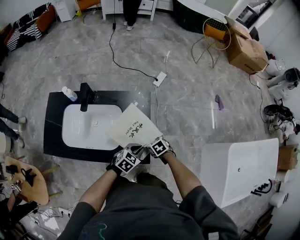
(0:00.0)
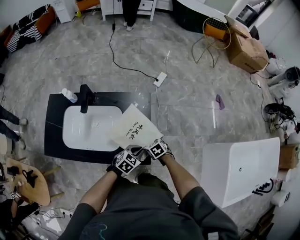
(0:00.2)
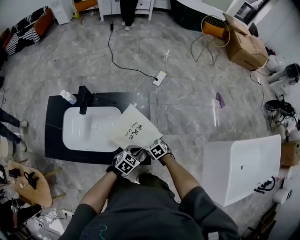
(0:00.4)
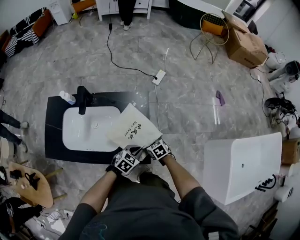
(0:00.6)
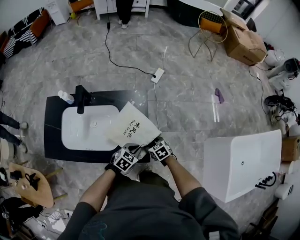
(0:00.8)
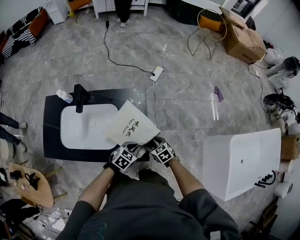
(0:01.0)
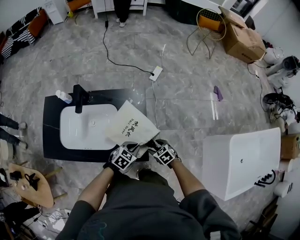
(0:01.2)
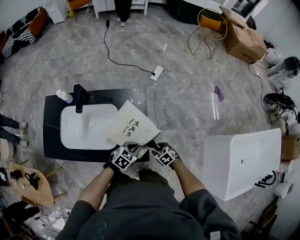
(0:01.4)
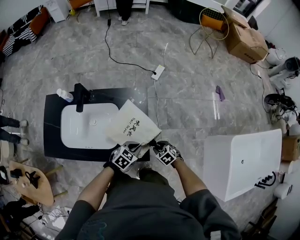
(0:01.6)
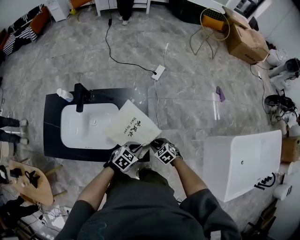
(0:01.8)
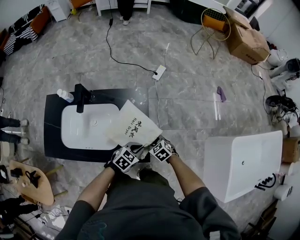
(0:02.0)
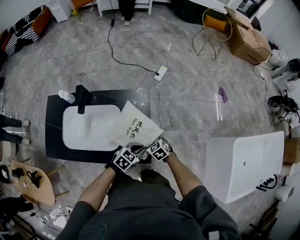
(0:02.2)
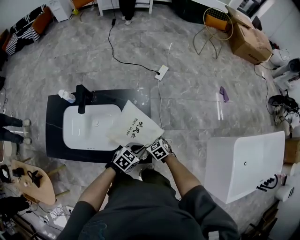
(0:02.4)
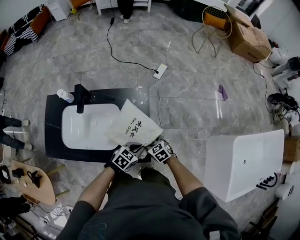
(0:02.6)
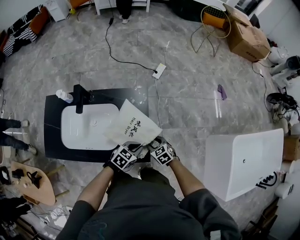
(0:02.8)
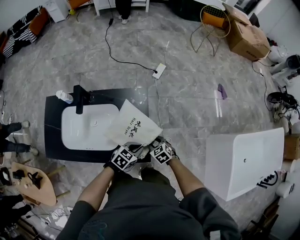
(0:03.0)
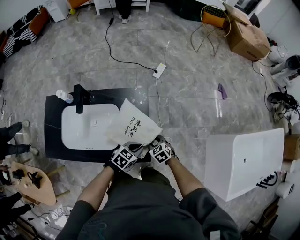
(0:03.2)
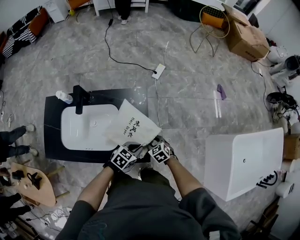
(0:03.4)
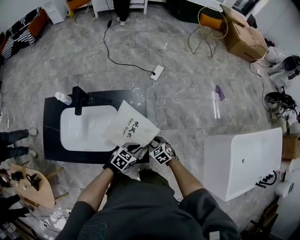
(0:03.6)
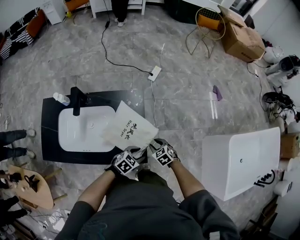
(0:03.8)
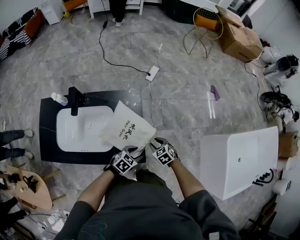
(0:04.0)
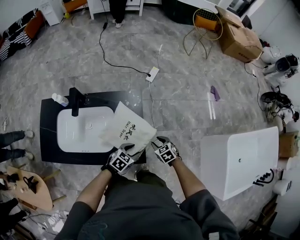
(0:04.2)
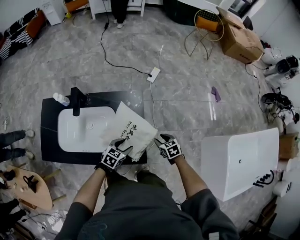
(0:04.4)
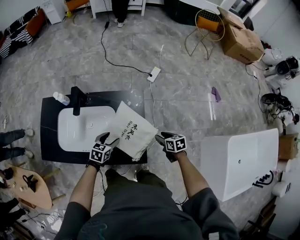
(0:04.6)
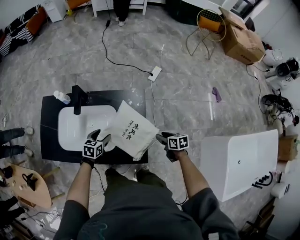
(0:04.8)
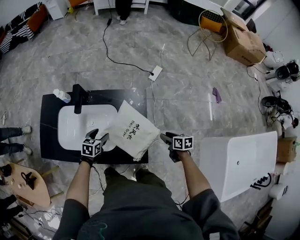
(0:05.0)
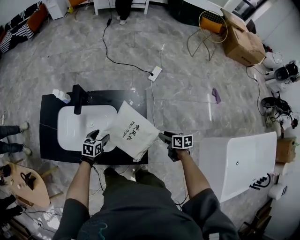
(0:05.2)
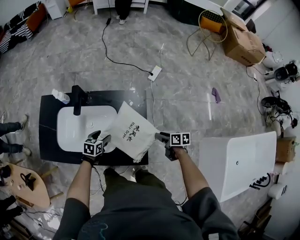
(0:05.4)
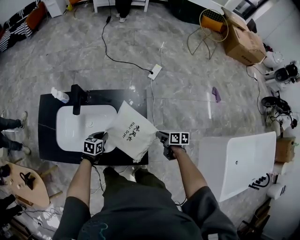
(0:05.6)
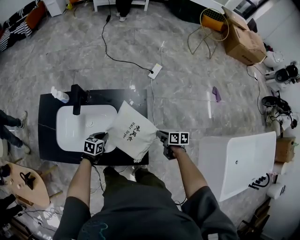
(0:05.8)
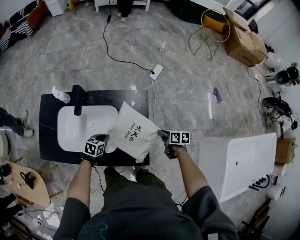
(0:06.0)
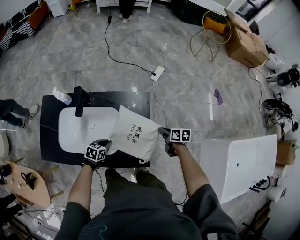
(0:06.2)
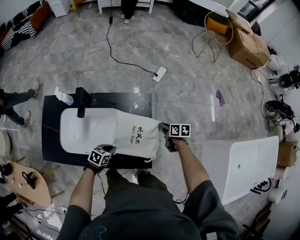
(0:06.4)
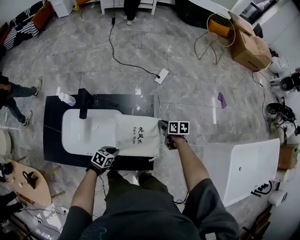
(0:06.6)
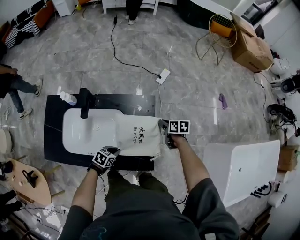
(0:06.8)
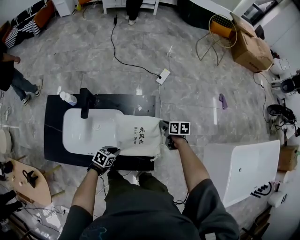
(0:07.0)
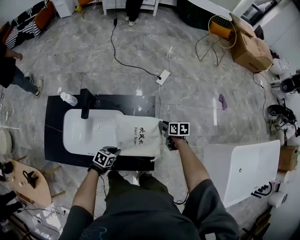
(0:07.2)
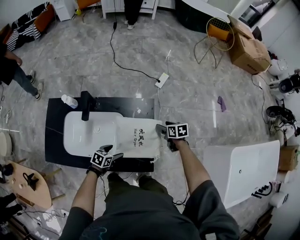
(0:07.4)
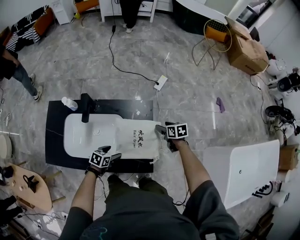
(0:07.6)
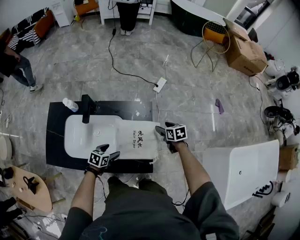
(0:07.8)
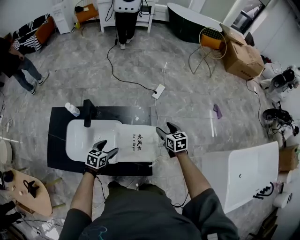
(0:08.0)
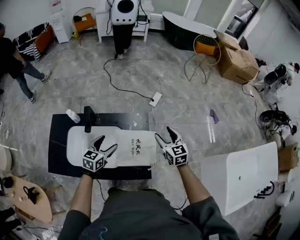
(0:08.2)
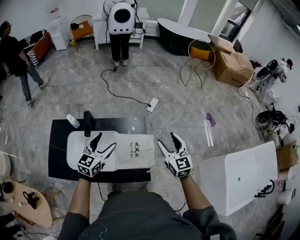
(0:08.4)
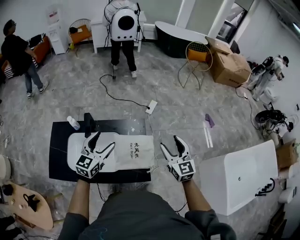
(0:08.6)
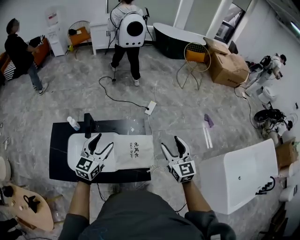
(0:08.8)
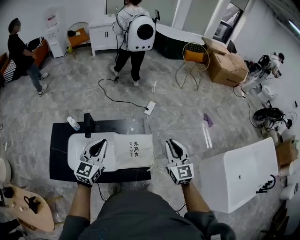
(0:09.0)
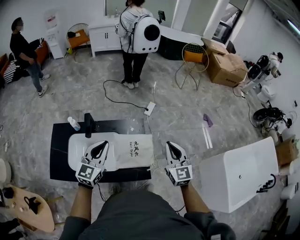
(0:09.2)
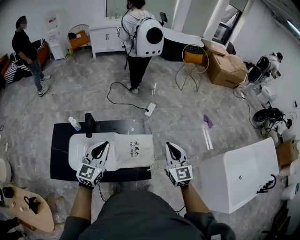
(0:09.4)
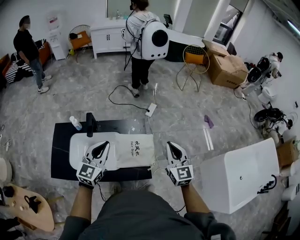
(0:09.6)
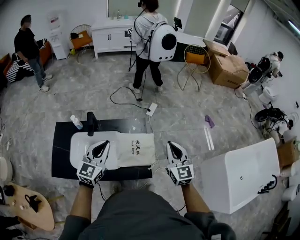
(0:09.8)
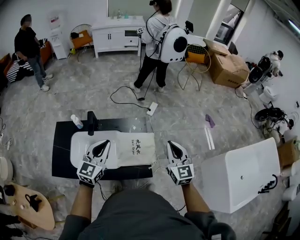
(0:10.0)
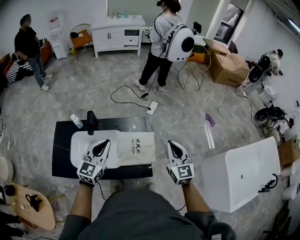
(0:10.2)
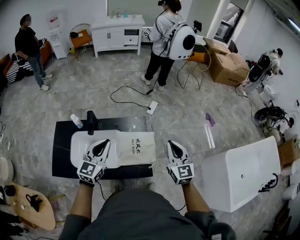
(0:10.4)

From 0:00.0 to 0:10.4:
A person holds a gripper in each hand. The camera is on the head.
From 0:00.0 to 0:01.4: The right gripper heads backward and to the right, covering some 10 cm.
From 0:01.4 to 0:03.0: The right gripper is displaced forward by some 5 cm.
From 0:03.0 to 0:04.4: The right gripper is displaced to the right by some 5 cm. The left gripper goes some 5 cm to the left, and opens.
From 0:04.4 to 0:06.0: The left gripper moves to the left and forward, about 15 cm, and closes up, while the right gripper goes some 5 cm forward, rotates some 40 degrees, and closes.
From 0:06.0 to 0:07.4: The right gripper heads forward, covering about 10 cm, and opens up. Meanwhile the left gripper moves backward, approximately 5 cm, and opens its fingers.
From 0:07.4 to 0:09.0: Both grippers travel together upward, about 35 cm. The left gripper tips its fingers upward by some 40 degrees, and closes. Meanwhile the right gripper angles its fingers upward, by roughly 40 degrees, and closes.
From 0:09.0 to 0:10.4: The grippers move only a little.

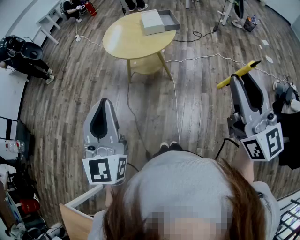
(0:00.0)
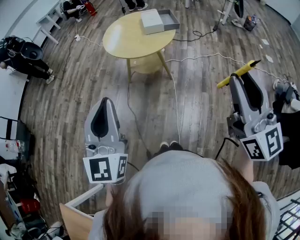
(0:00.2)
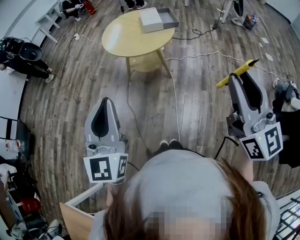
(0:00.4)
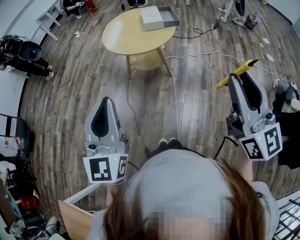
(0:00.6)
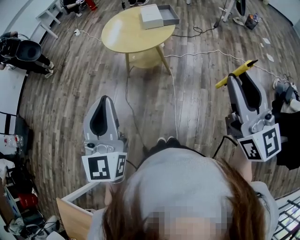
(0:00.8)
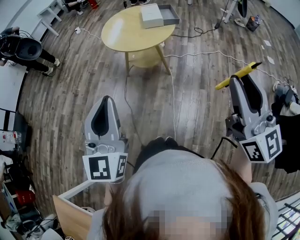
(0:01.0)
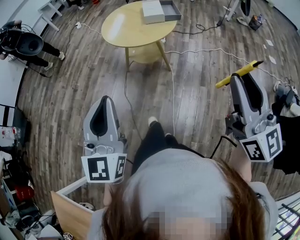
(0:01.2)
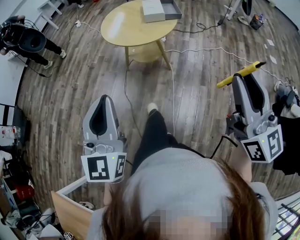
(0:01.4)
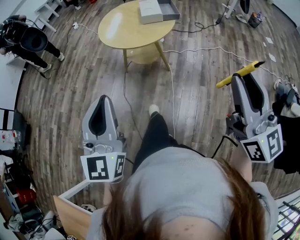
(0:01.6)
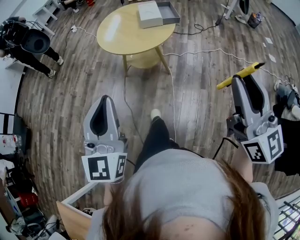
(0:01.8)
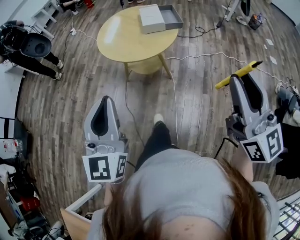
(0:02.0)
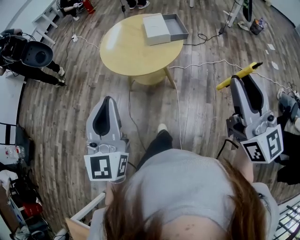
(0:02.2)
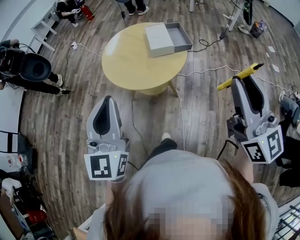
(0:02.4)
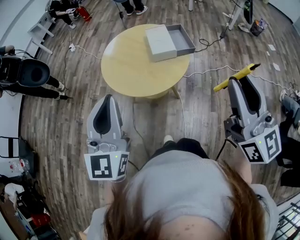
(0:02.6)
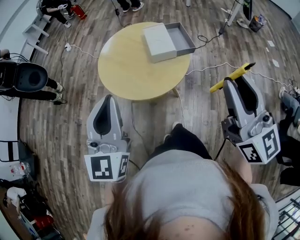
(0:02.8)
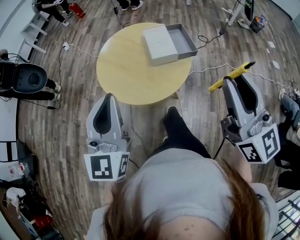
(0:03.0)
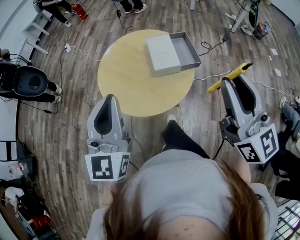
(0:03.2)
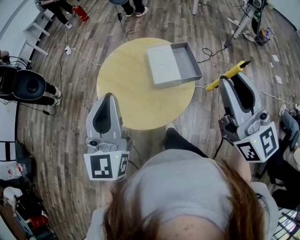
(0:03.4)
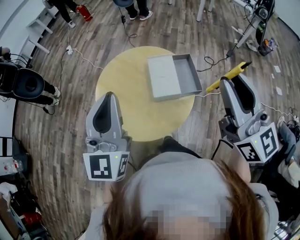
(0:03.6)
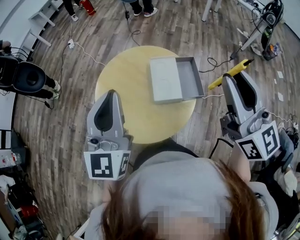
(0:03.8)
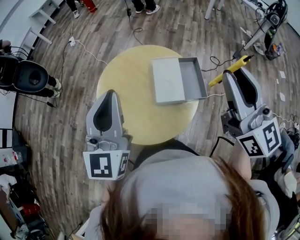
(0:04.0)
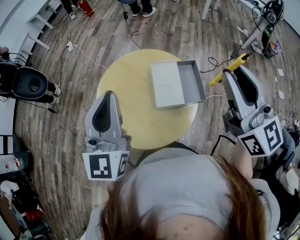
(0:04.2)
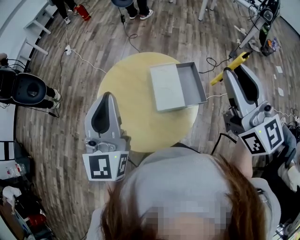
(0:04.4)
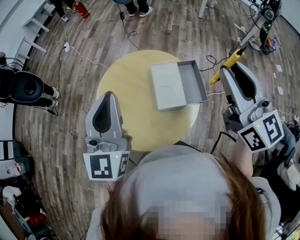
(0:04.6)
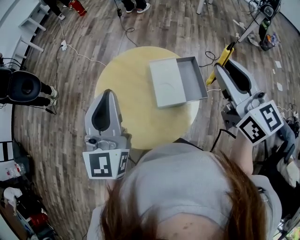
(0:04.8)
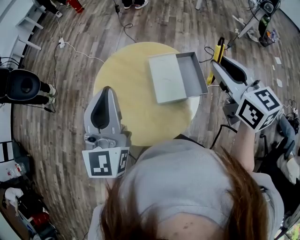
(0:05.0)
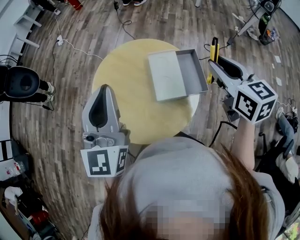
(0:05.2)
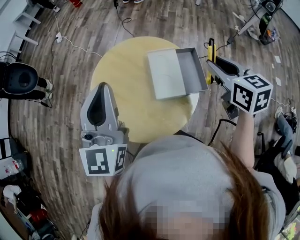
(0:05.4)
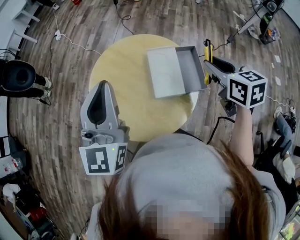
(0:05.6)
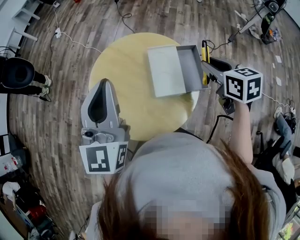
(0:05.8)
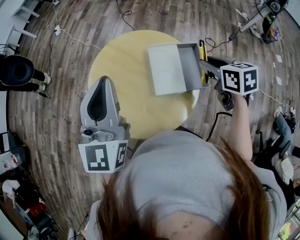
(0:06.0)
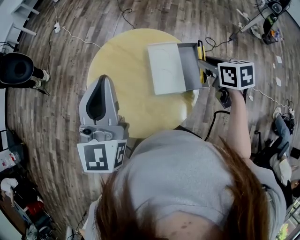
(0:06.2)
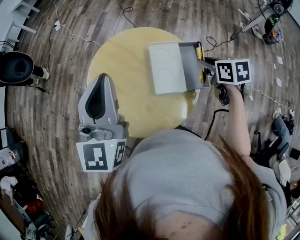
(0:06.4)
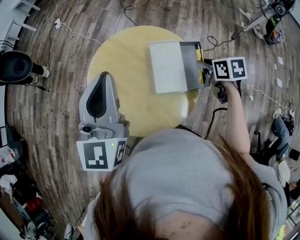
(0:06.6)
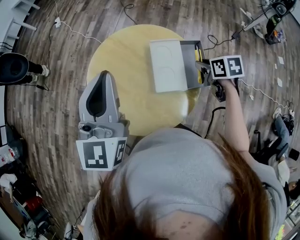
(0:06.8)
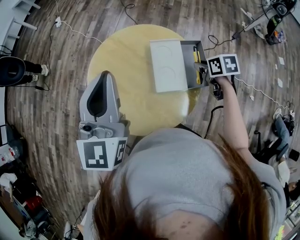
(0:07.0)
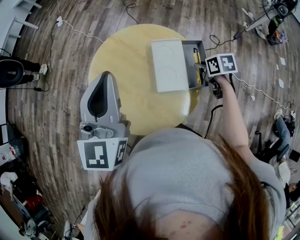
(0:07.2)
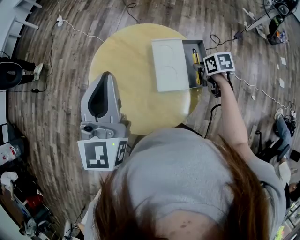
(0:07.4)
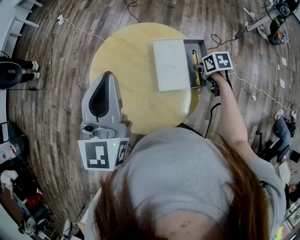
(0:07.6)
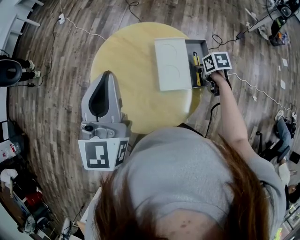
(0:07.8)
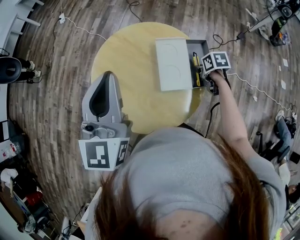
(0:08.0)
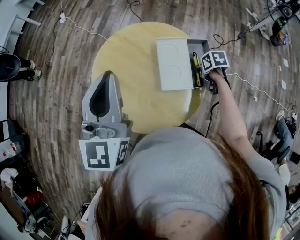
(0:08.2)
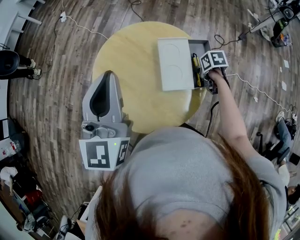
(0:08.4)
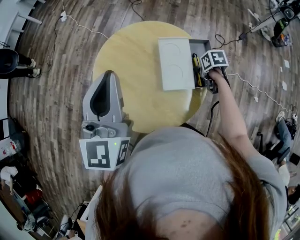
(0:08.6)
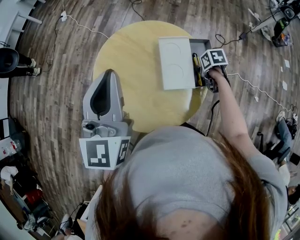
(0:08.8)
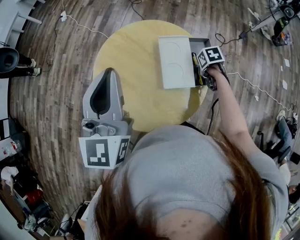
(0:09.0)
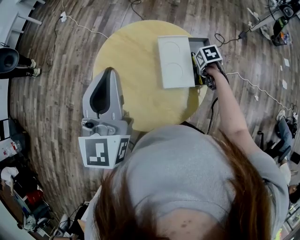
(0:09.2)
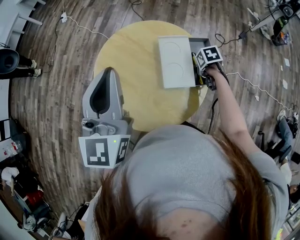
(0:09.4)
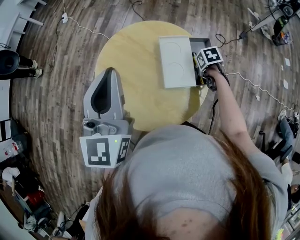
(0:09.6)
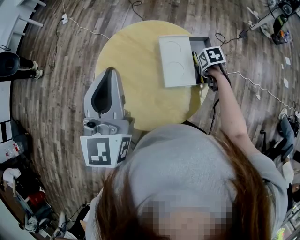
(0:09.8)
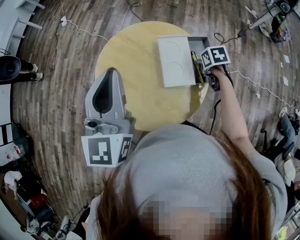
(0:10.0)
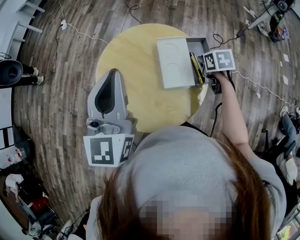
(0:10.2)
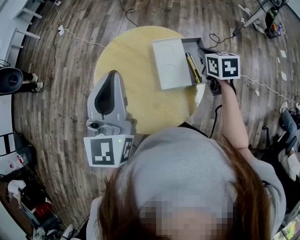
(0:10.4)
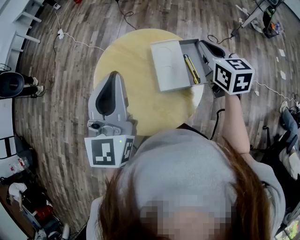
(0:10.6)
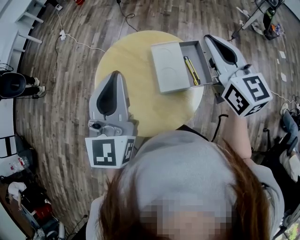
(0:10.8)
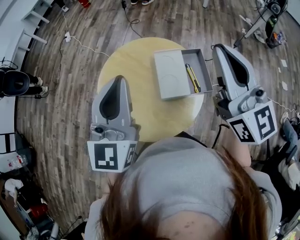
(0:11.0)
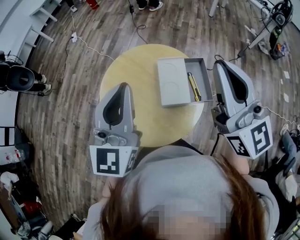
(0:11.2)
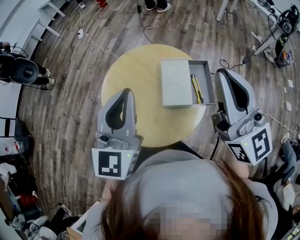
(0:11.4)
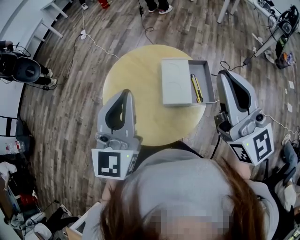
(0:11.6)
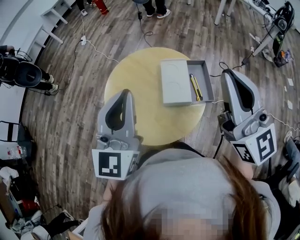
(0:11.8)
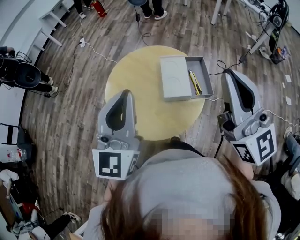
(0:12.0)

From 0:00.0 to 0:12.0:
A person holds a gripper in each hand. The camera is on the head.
From 0:00.0 to 0:01.6: There are only small adjustments of the grippers.
From 0:01.6 to 0:03.0: Both grippers travel together forward, roughly 35 cm.
From 0:03.0 to 0:04.4: The grippers both shift forward by roughly 25 cm.
From 0:04.4 to 0:06.0: The right gripper is displaced downward by roughly 25 cm, and tilts its fingers roughly 50 degrees downward.
From 0:06.0 to 0:07.6: The right gripper goes some 20 cm downward, and rotates roughly 20 degrees.
From 0:07.6 to 0:09.0: There are only small adjustments of the grippers.
From 0:09.0 to 0:10.4: The right gripper travels upward by approximately 20 cm, turns by roughly 40 degrees, and closes.
From 0:10.4 to 0:12.0: The left gripper shifts about 10 cm backward. Meanwhile the right gripper heads upward and backward, covering some 35 cm, and tips its fingers upward by approximately 60 degrees.

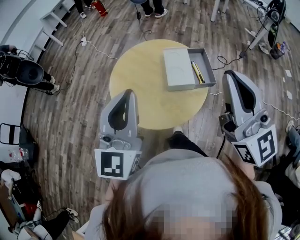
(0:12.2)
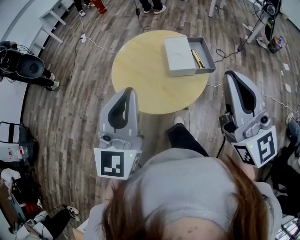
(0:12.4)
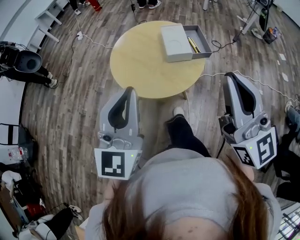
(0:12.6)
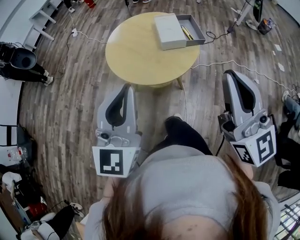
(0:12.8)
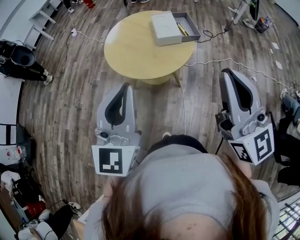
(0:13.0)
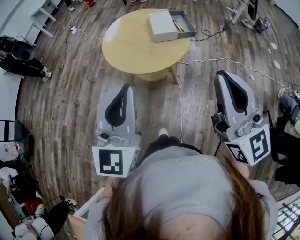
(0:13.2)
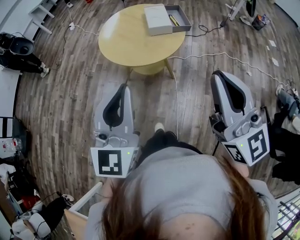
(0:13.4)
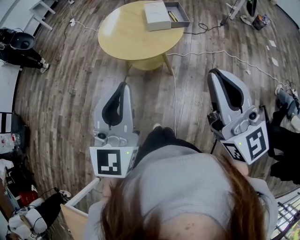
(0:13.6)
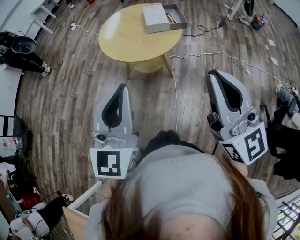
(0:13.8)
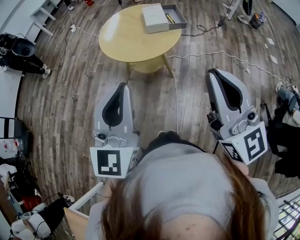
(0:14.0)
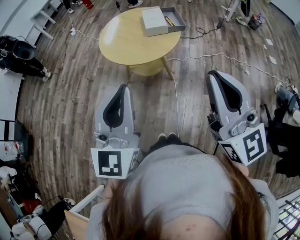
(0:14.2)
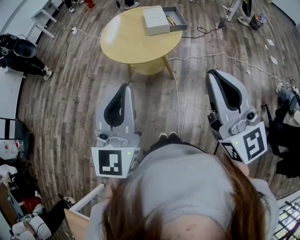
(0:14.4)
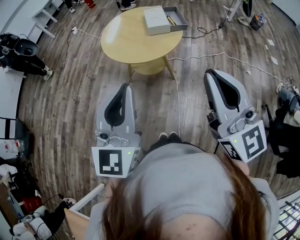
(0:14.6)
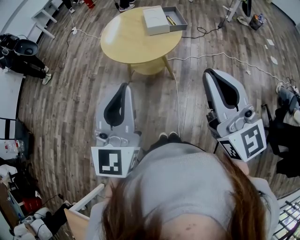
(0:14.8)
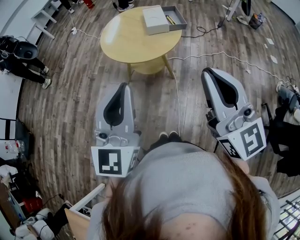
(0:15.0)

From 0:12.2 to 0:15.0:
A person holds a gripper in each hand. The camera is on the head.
From 0:12.2 to 0:13.6: Both grippers move backward, roughly 30 cm.
From 0:13.6 to 0:15.0: The grippers make only small movements.
